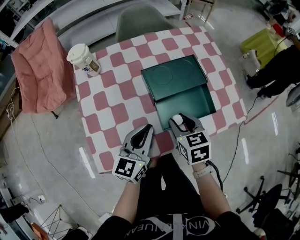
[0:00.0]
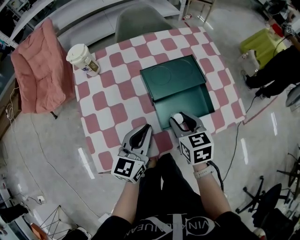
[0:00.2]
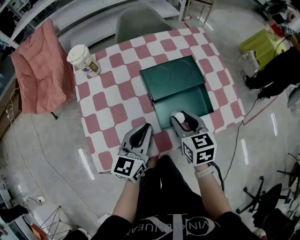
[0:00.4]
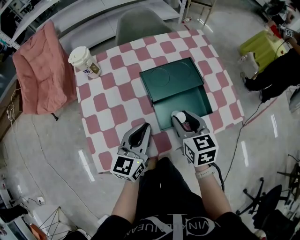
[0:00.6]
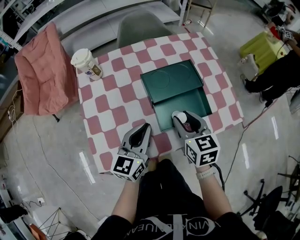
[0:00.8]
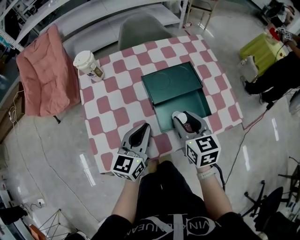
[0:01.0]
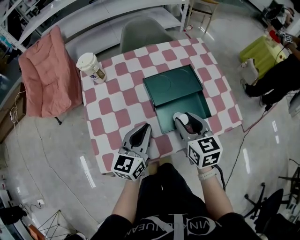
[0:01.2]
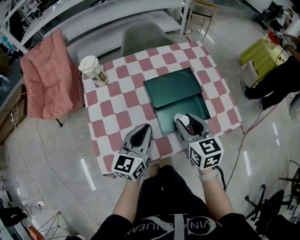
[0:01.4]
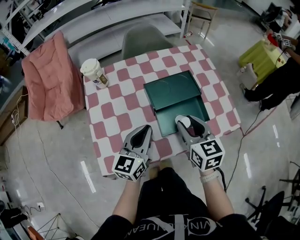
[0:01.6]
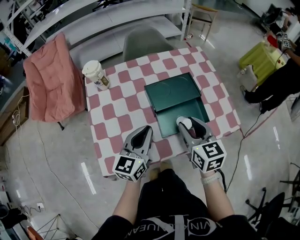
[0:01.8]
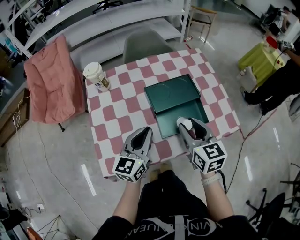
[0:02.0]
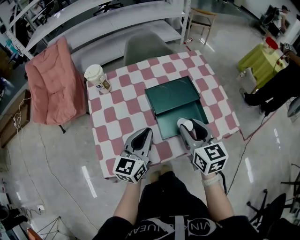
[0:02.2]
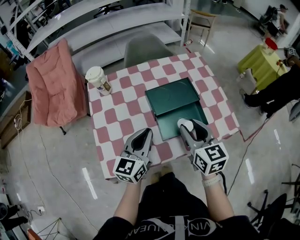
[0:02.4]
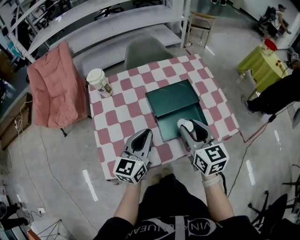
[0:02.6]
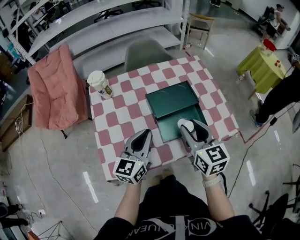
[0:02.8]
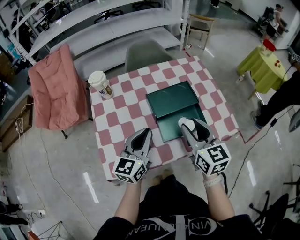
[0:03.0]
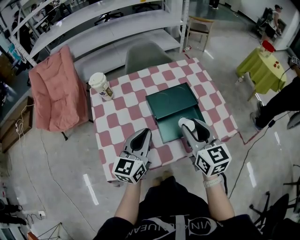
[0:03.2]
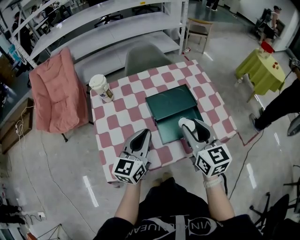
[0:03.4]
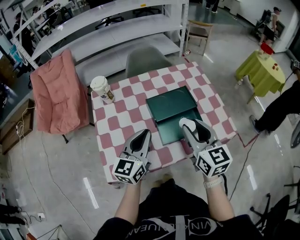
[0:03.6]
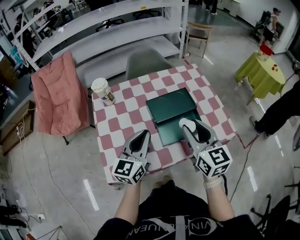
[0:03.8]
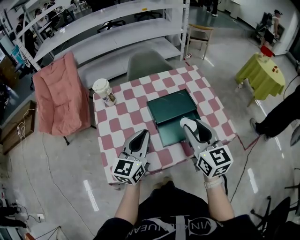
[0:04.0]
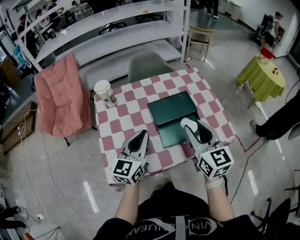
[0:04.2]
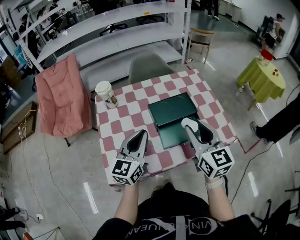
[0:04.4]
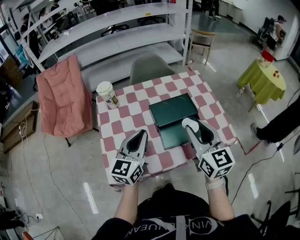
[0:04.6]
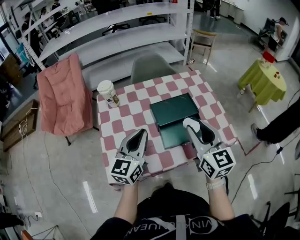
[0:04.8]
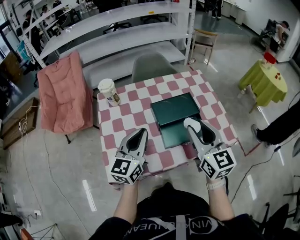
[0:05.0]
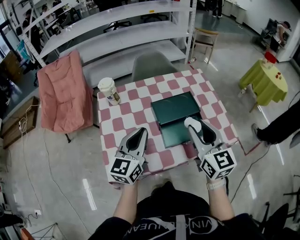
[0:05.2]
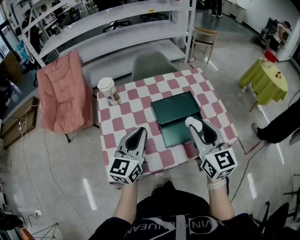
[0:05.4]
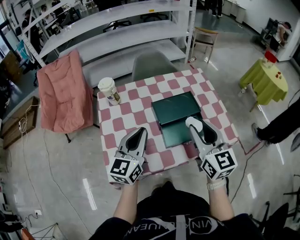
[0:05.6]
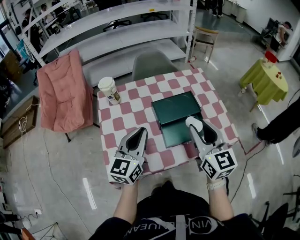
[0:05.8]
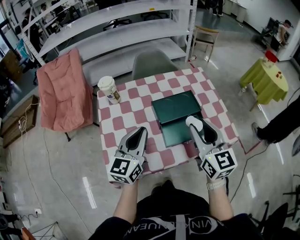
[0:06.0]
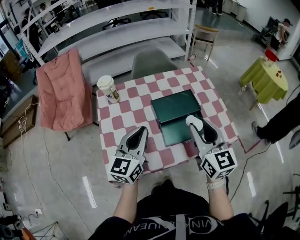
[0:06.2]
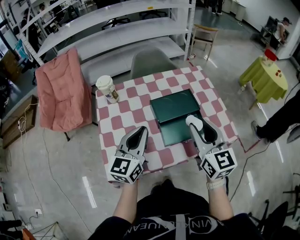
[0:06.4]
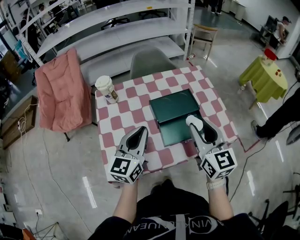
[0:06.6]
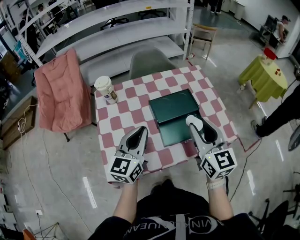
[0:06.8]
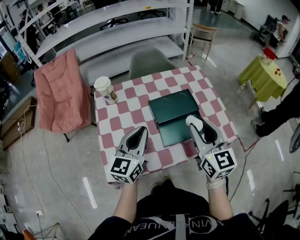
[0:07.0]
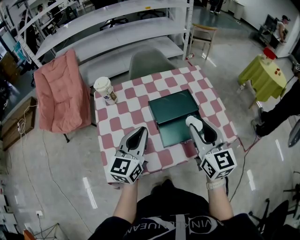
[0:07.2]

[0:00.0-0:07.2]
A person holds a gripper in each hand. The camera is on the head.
0:00.0 to 0:01.4: The right gripper moves upward, approximately 10 cm.
0:01.4 to 0:02.8: The right gripper heads upward, covering about 5 cm.
0:02.8 to 0:04.4: The two grippers go some 5 cm upward.
0:04.4 to 0:07.2: There are only small adjustments of the grippers.

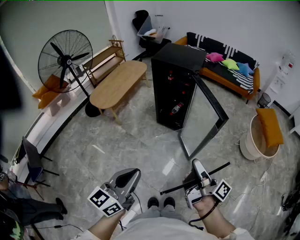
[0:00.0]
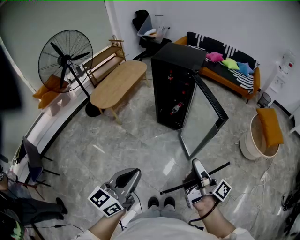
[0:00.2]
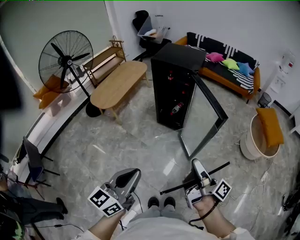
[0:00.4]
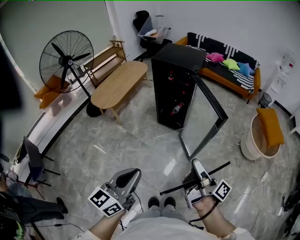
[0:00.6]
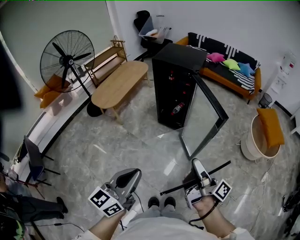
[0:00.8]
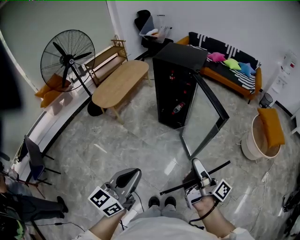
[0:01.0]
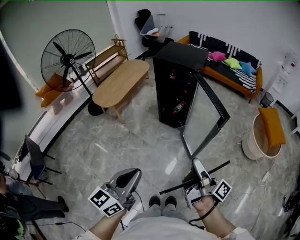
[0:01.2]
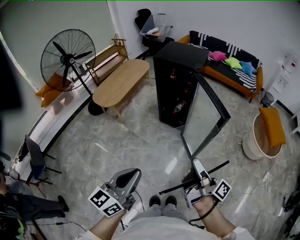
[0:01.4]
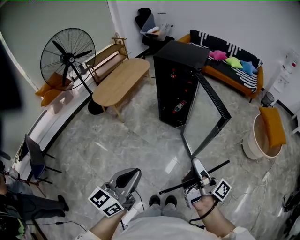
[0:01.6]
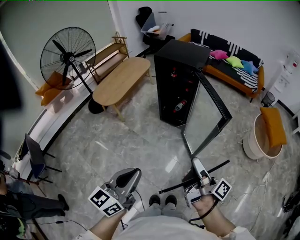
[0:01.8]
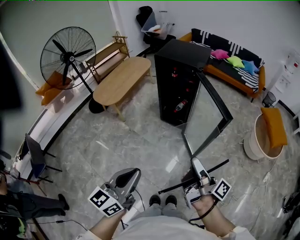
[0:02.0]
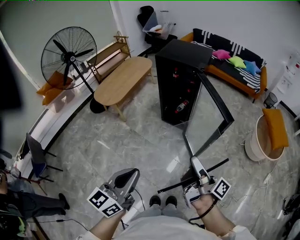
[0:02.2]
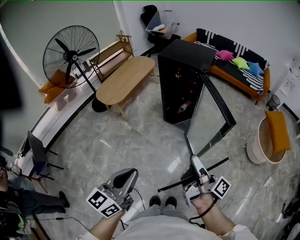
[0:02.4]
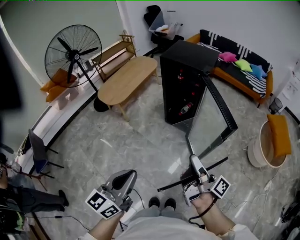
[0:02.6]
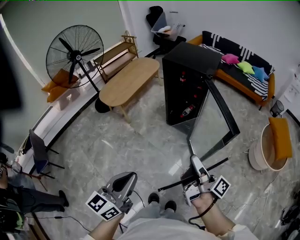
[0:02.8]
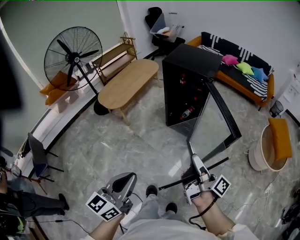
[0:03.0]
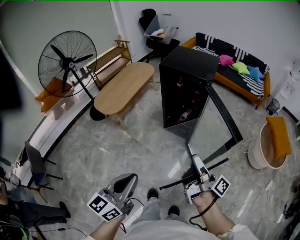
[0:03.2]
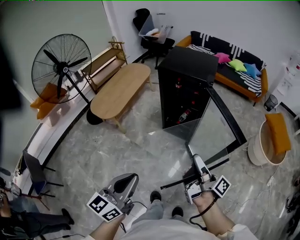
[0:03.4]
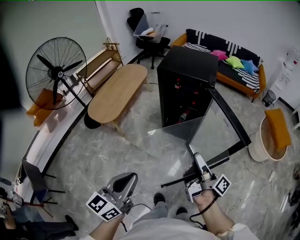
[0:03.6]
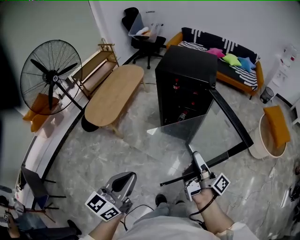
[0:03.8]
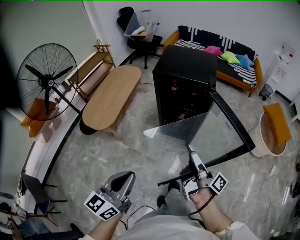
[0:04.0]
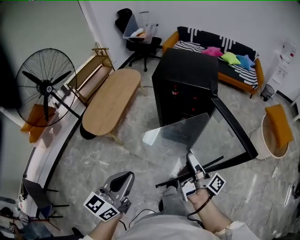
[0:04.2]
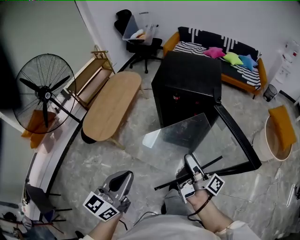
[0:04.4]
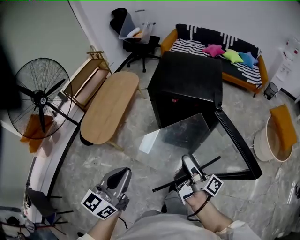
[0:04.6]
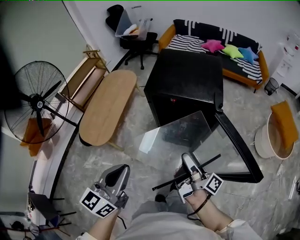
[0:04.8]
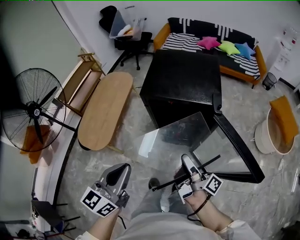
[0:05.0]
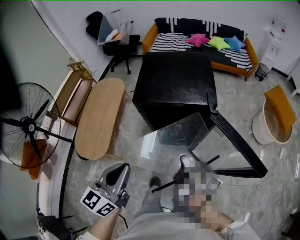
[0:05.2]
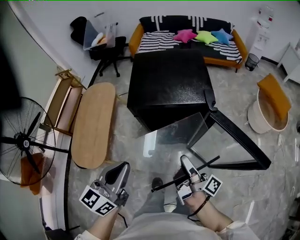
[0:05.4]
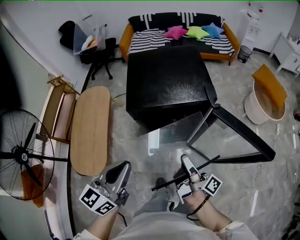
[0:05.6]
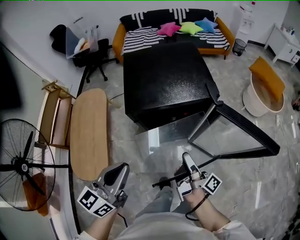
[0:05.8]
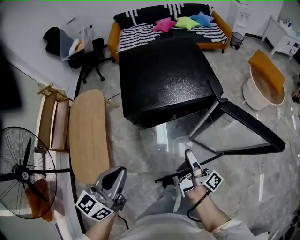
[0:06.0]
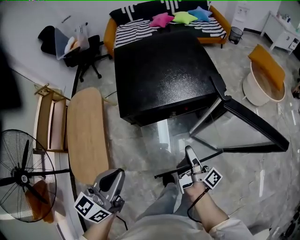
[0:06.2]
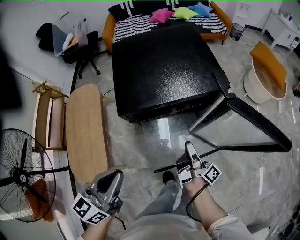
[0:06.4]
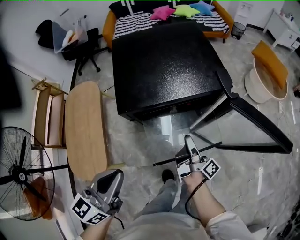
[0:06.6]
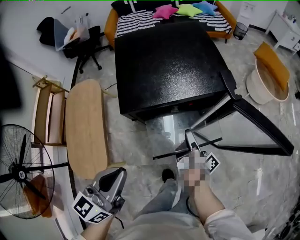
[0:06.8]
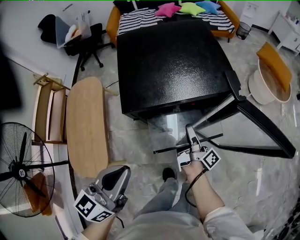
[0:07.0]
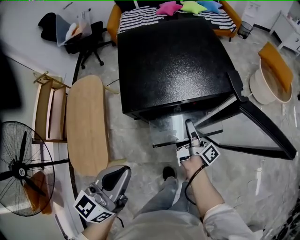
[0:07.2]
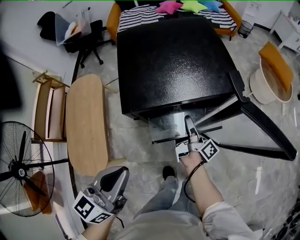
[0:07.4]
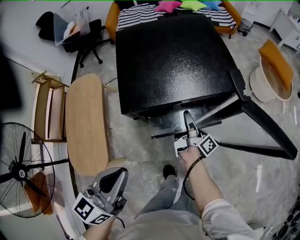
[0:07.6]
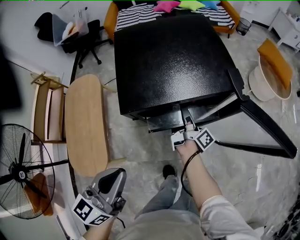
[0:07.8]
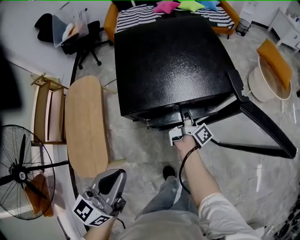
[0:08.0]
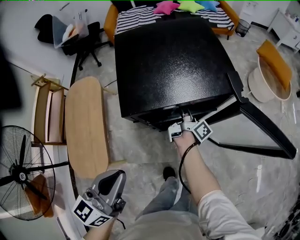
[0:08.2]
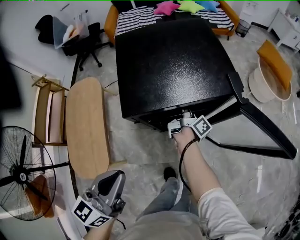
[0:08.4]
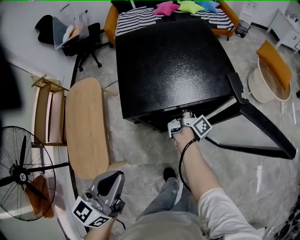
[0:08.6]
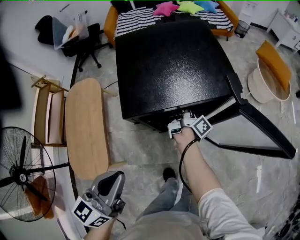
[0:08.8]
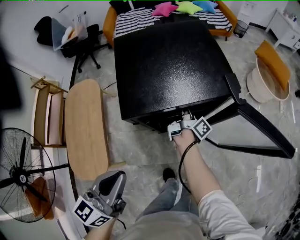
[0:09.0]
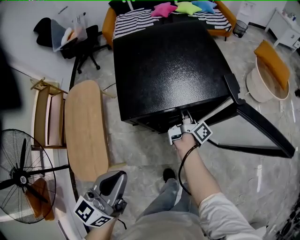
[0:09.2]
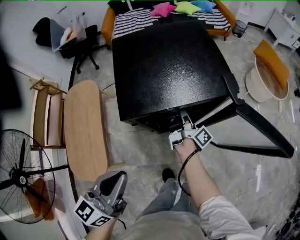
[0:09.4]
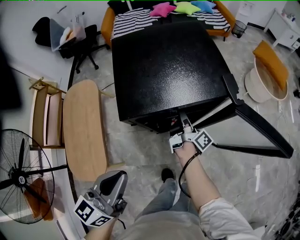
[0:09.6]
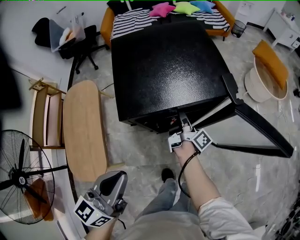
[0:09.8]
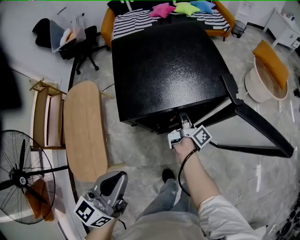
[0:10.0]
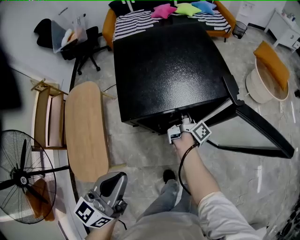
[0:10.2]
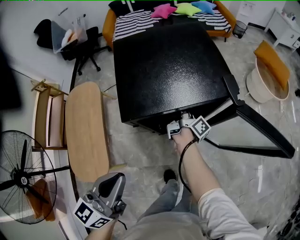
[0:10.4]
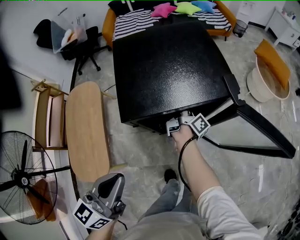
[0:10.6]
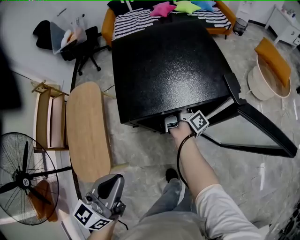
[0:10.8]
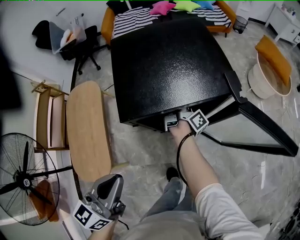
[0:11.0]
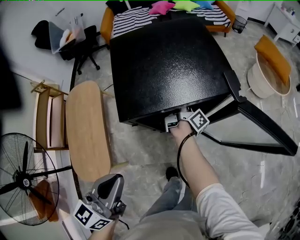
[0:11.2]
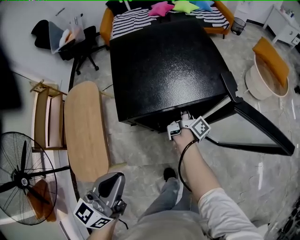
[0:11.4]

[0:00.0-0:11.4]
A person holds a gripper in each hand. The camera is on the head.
0:02.8 to 0:04.2: The left gripper shifts by some 30 cm.
0:04.2 to 0:05.6: The left gripper shifts by about 30 cm, and turns by approximately 20 degrees.
0:05.6 to 0:07.2: The left gripper moves roughly 5 cm.

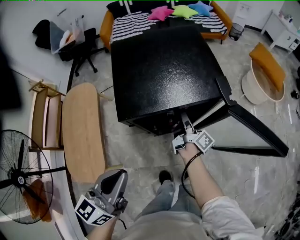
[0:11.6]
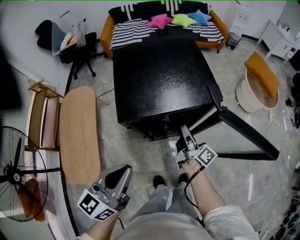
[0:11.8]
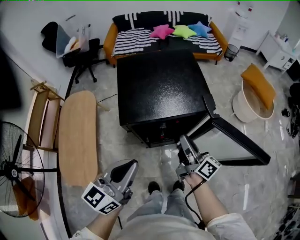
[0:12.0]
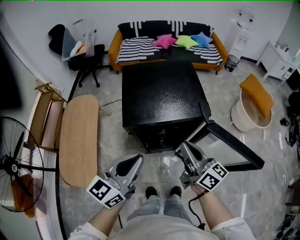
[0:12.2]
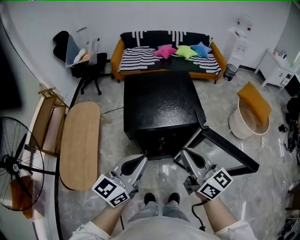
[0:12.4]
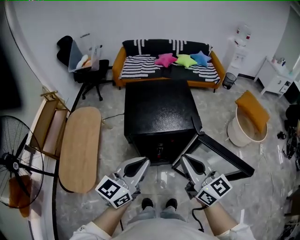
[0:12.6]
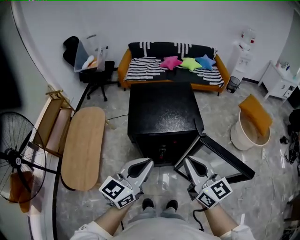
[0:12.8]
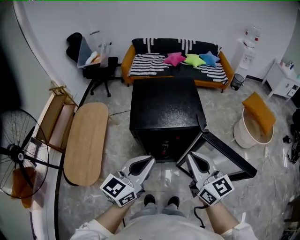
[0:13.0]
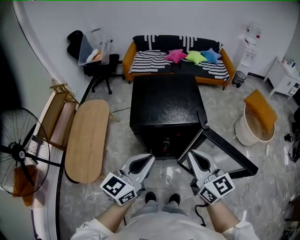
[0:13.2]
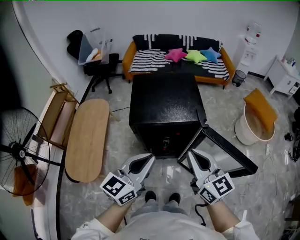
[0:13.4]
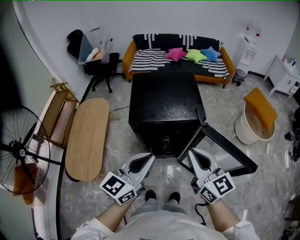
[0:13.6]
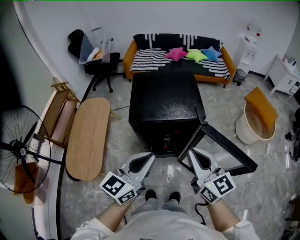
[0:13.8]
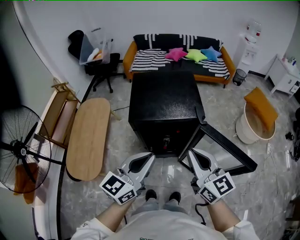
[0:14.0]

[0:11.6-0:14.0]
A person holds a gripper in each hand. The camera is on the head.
0:11.6 to 0:12.8: The left gripper moves roughly 15 cm.

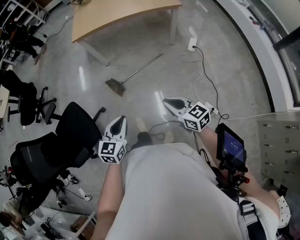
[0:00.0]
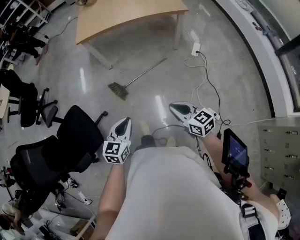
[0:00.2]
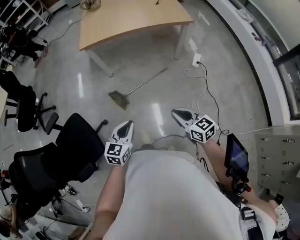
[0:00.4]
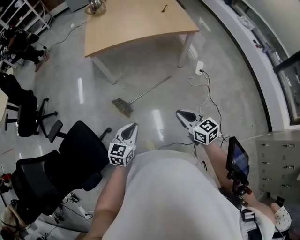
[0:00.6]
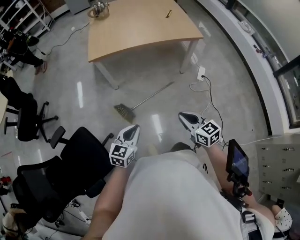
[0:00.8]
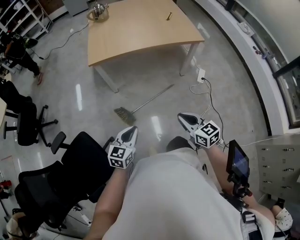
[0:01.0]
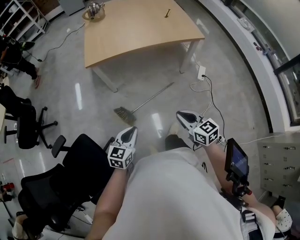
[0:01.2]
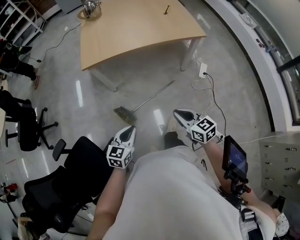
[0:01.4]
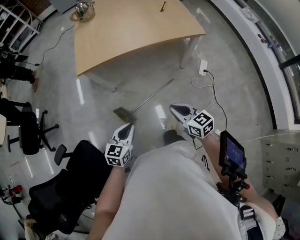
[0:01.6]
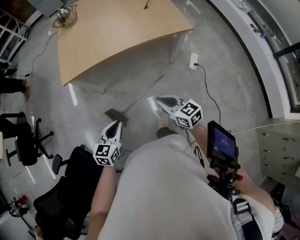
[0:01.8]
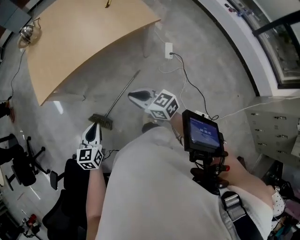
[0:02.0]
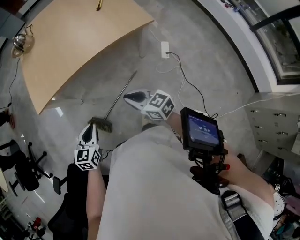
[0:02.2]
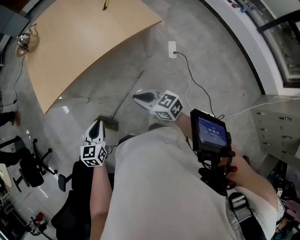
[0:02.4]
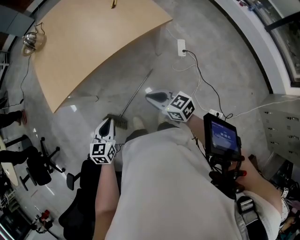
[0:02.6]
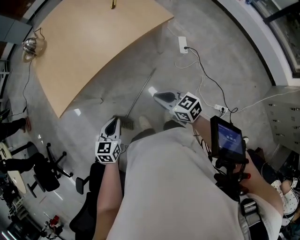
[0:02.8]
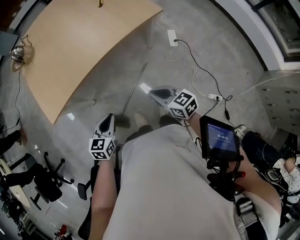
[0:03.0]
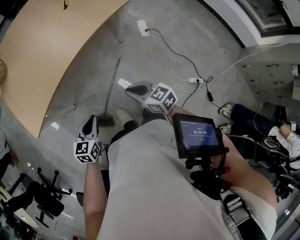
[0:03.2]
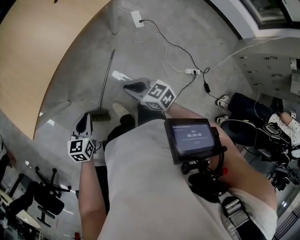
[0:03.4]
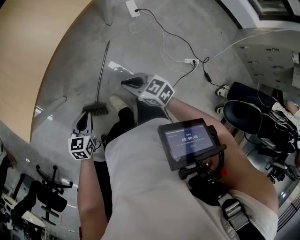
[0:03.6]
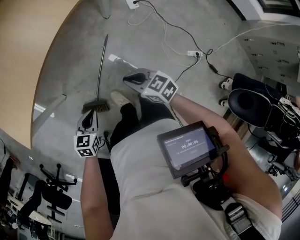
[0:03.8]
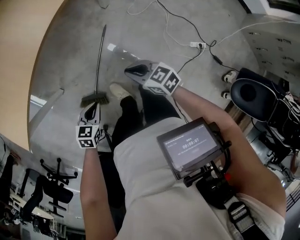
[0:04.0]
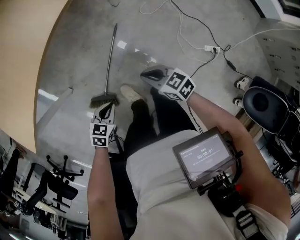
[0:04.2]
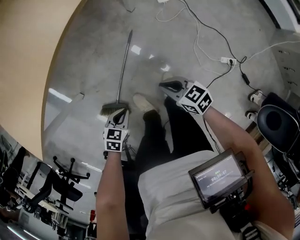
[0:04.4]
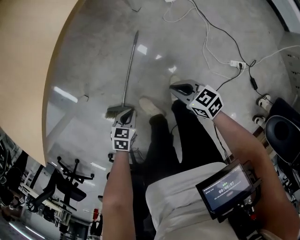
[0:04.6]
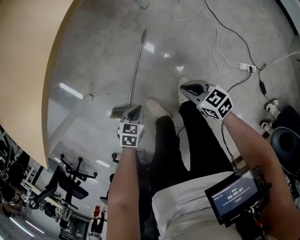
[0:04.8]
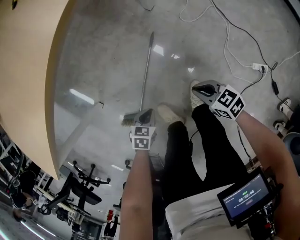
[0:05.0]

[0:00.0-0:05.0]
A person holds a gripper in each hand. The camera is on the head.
0:00.0 to 0:01.6: Both grippers move forward, roughly 30 cm.
0:01.6 to 0:03.4: The left gripper travels forward by some 20 cm, and swivels roughly 30 degrees. The right gripper shifts some 15 cm forward and downward, and changes its angle by roughly 20 degrees.
0:03.4 to 0:05.0: Both grippers move downward, approximately 35 cm. The left gripper turns by some 30 degrees.
